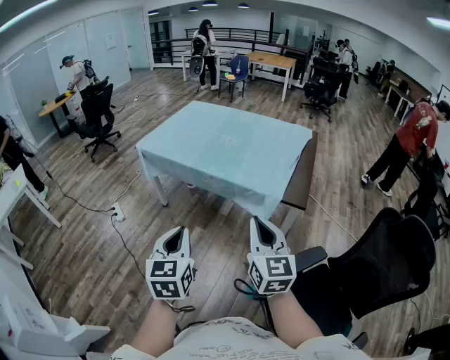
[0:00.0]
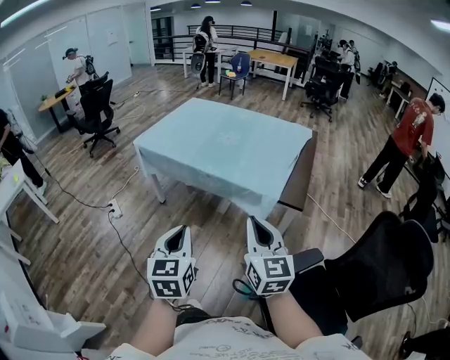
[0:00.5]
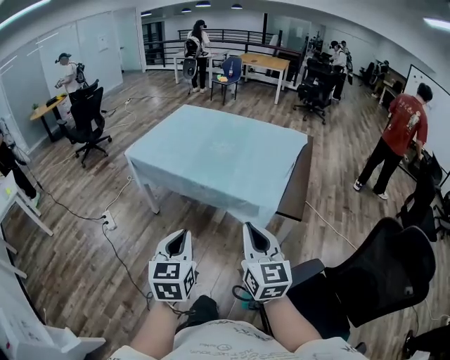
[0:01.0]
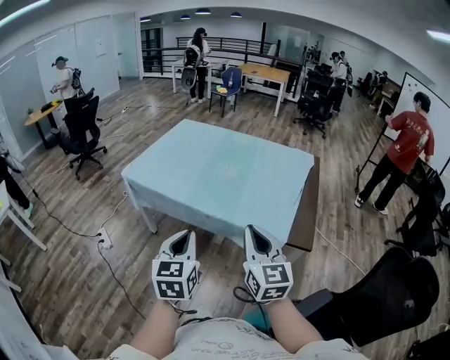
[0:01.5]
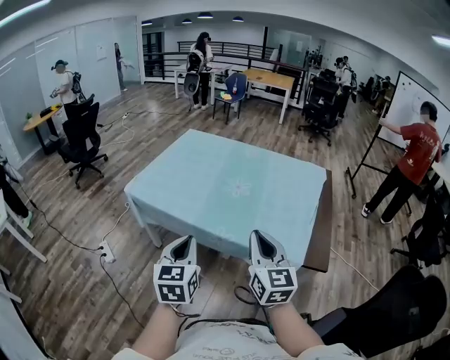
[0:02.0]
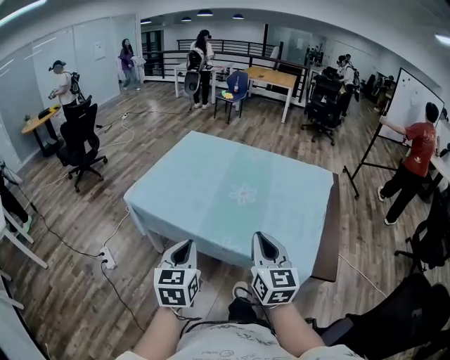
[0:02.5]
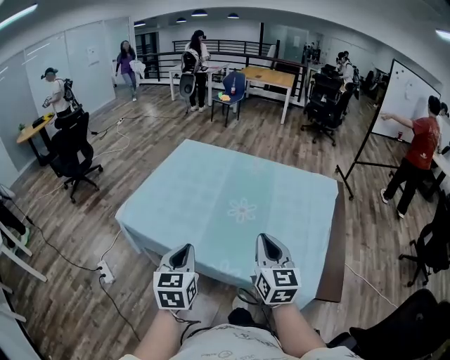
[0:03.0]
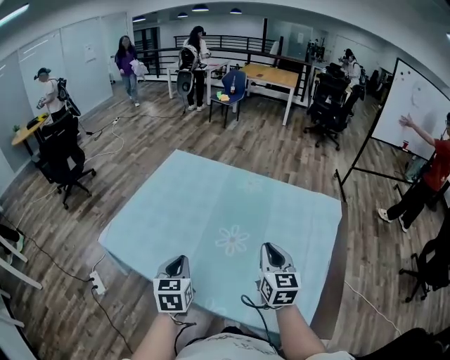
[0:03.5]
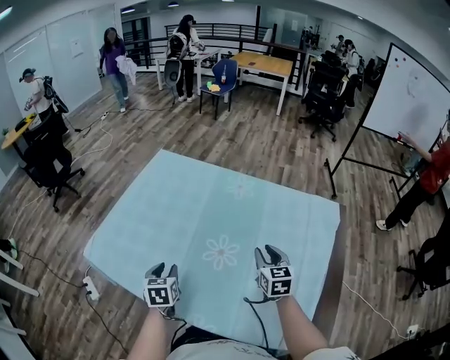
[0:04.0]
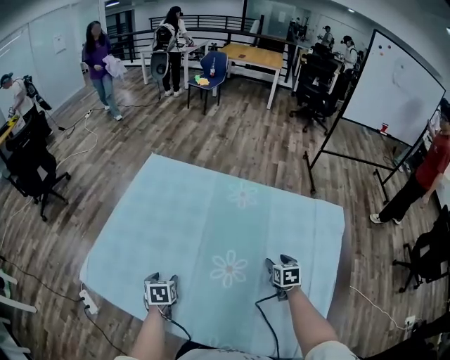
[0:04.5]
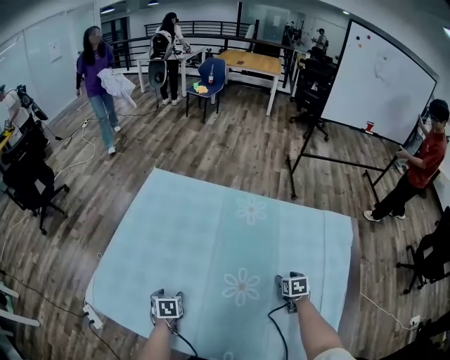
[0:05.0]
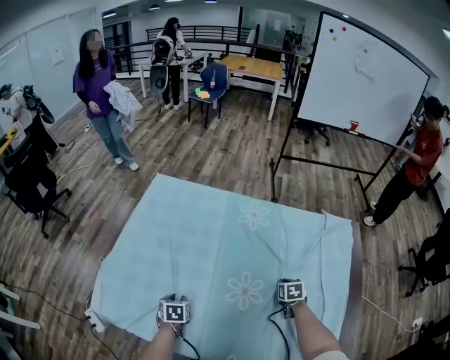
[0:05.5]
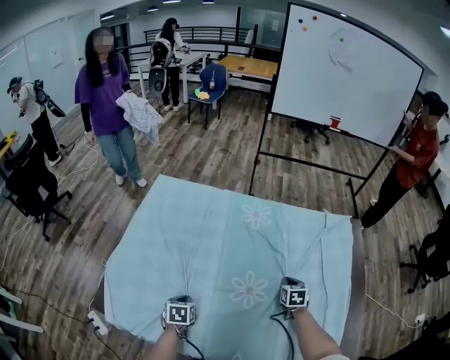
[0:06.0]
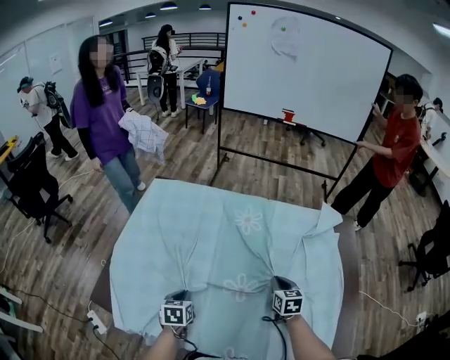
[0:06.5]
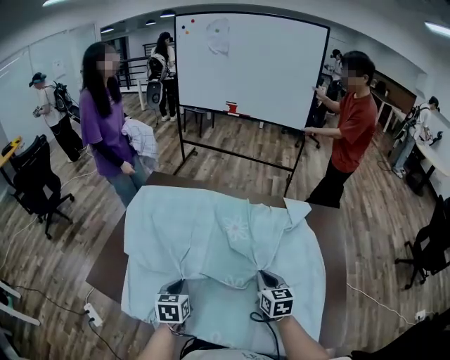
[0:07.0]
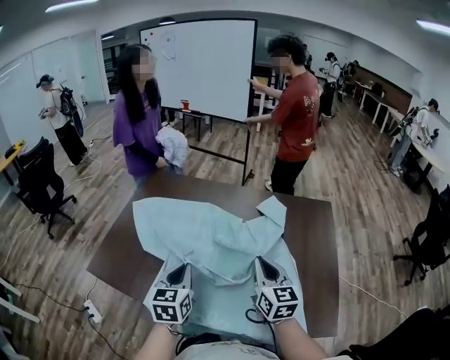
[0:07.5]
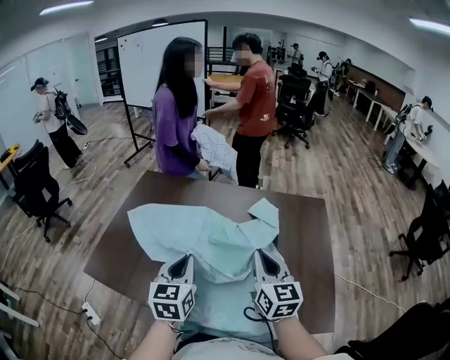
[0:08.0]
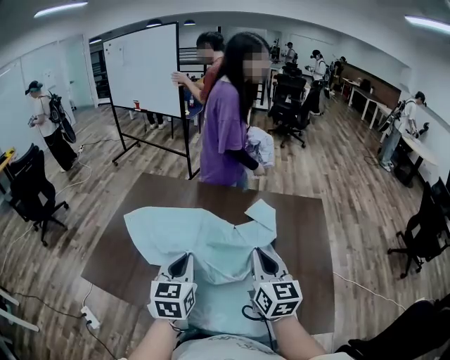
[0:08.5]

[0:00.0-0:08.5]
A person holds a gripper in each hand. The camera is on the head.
0:00.0 to 0:02.0: The grippers both shift forward by about 30 cm.
0:02.0 to 0:04.0: The two grippers travel together, forward, approximately 40 cm. Both grippers travel together downward, approximately 20 cm. The right gripper rotates about 20 degrees, and opens its fingers. Meanwhile the left gripper swivels some 30 degrees, and opens its fingers.
0:04.0 to 0:06.5: The left gripper heads forward and downward, covering some 10 cm, and closes its fingers. Meanwhile the right gripper travels downward by about 10 cm, and closes its fingers.
0:06.5 to 0:08.5: The right gripper travels upward and backward by some 30 cm, and tips its fingers upward by some 30 degrees. Meanwhile the left gripper travels upward and to the right by roughly 30 cm, and tips its fingers upward by approximately 30 degrees.

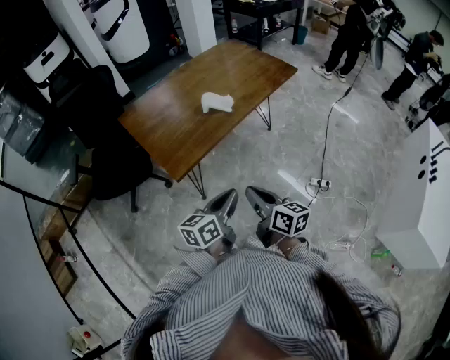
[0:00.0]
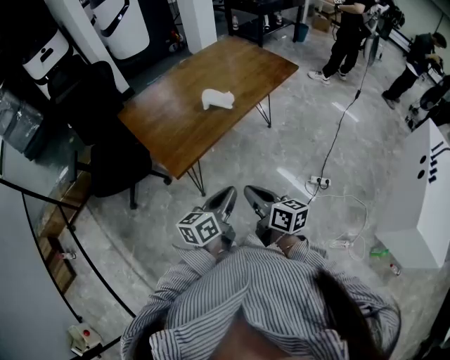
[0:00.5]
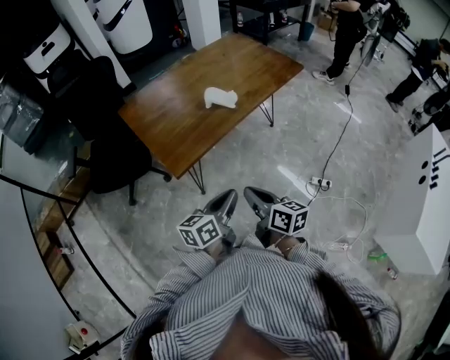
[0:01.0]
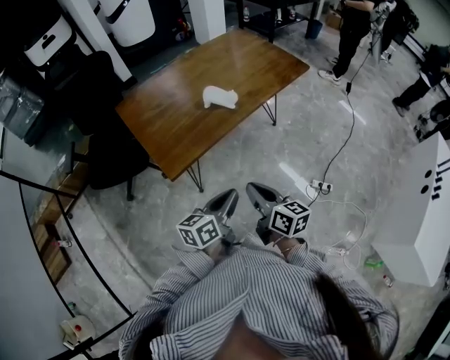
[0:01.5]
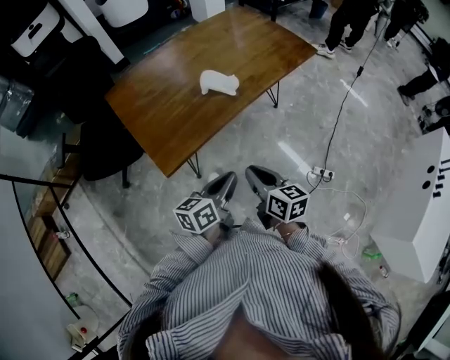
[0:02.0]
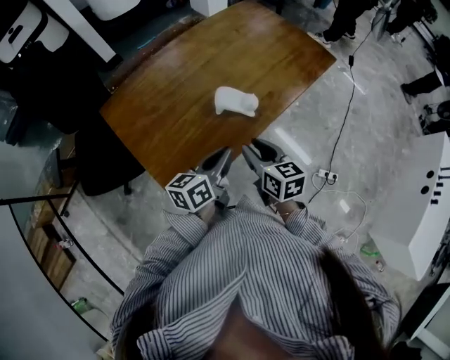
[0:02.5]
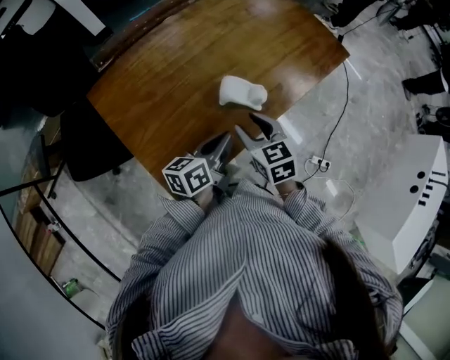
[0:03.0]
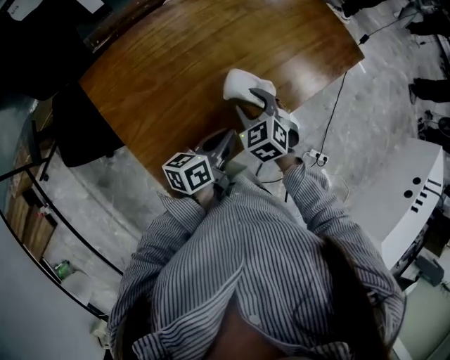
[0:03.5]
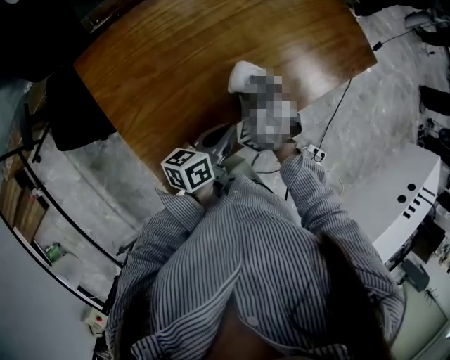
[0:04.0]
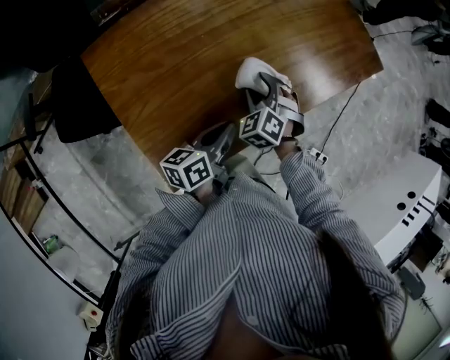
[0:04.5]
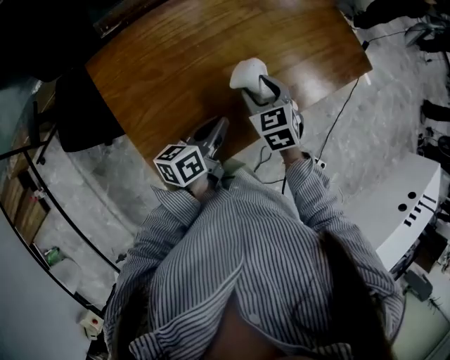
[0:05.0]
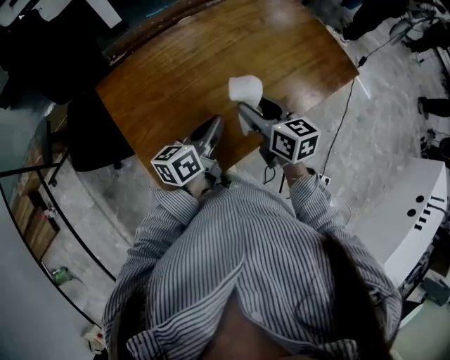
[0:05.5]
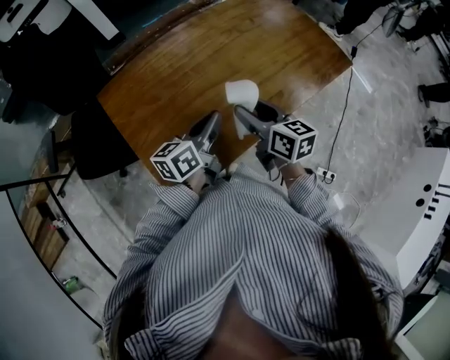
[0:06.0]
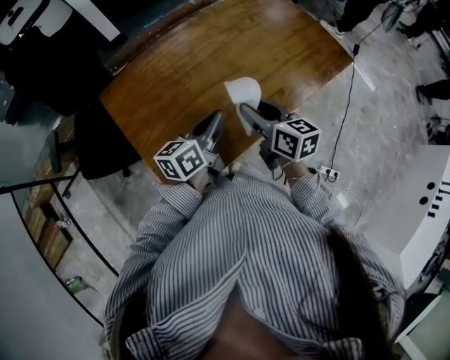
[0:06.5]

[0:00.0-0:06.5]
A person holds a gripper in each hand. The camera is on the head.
0:00.0 to 0:02.0: Both grippers move forward and downward, approximately 15 cm.
0:02.0 to 0:04.5: Both grippers travel together forward and to the left, some 35 cm. The right gripper rolls counterclockwise, seen from behind, by roughly 70 degrees, and opens its fingers.
0:04.5 to 0:06.5: The left gripper goes some 10 cm upward. Meanwhile the right gripper moves upward, about 15 cm, and rolls clockwise, seen from behind, by some 70 degrees.

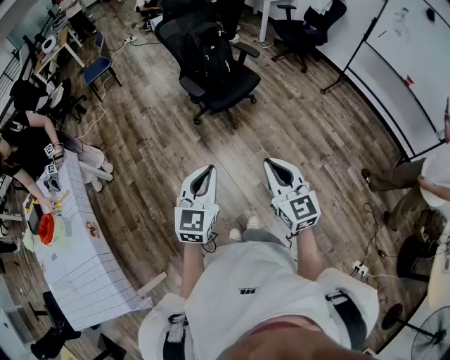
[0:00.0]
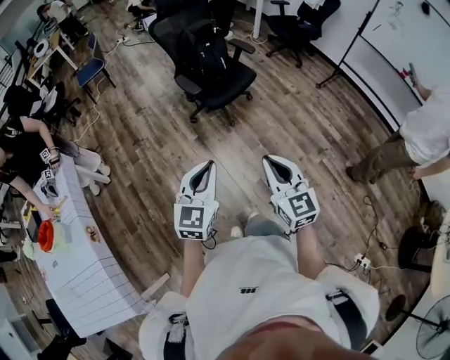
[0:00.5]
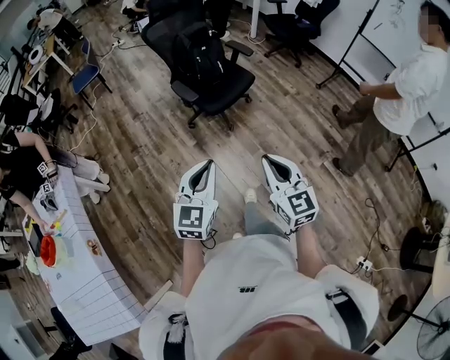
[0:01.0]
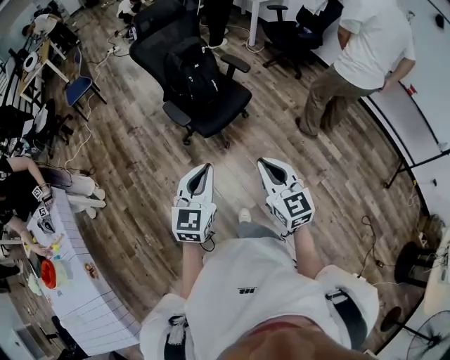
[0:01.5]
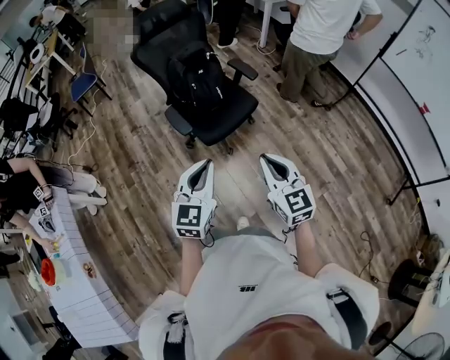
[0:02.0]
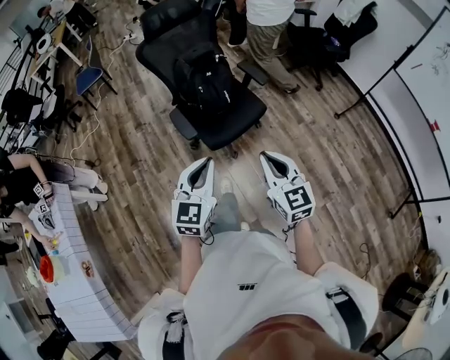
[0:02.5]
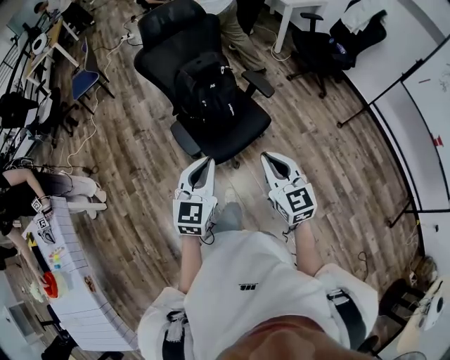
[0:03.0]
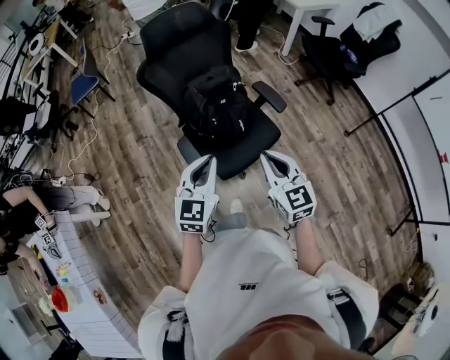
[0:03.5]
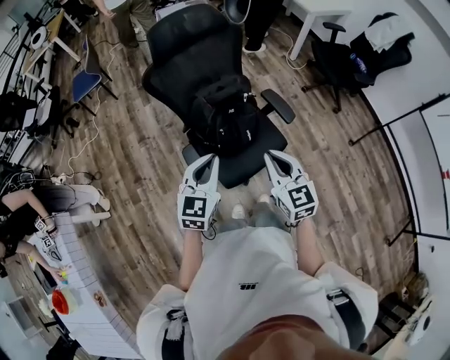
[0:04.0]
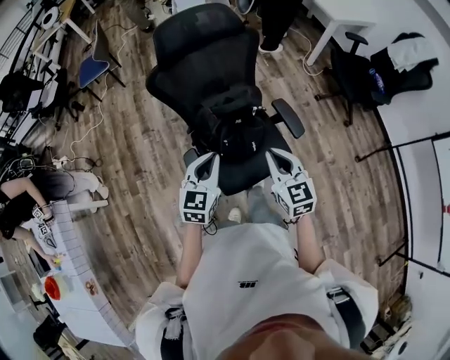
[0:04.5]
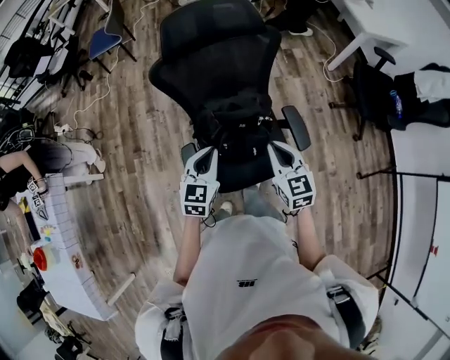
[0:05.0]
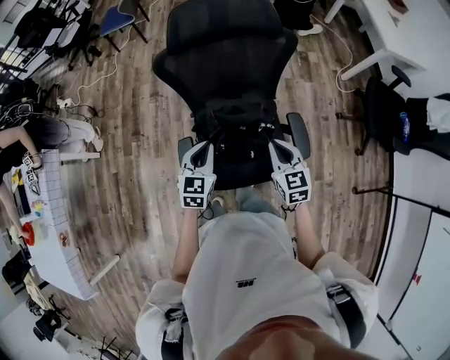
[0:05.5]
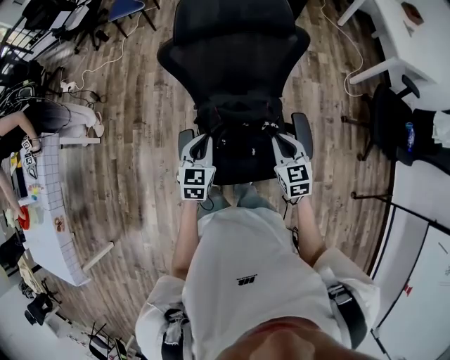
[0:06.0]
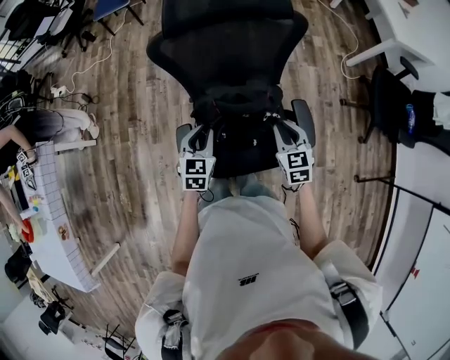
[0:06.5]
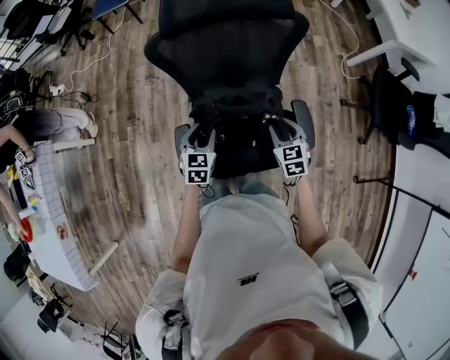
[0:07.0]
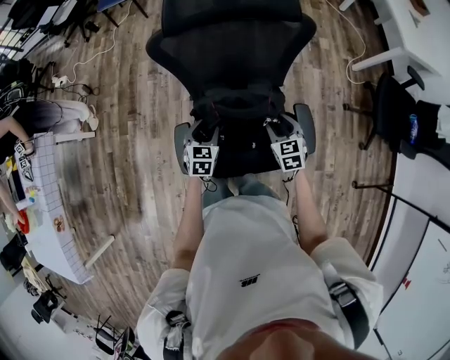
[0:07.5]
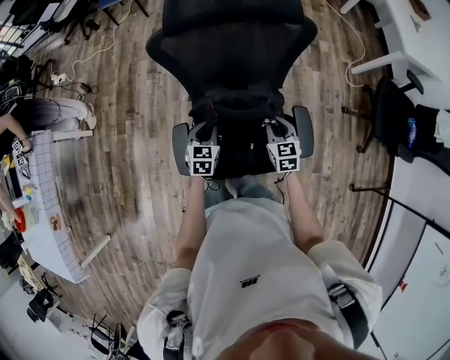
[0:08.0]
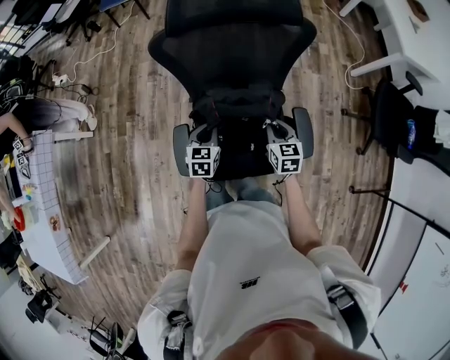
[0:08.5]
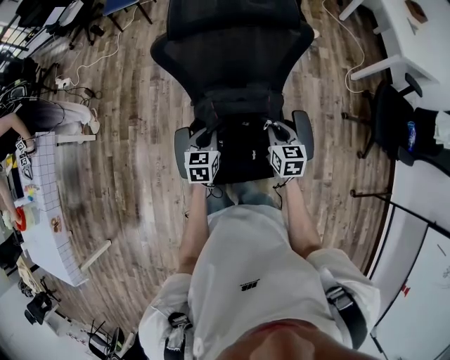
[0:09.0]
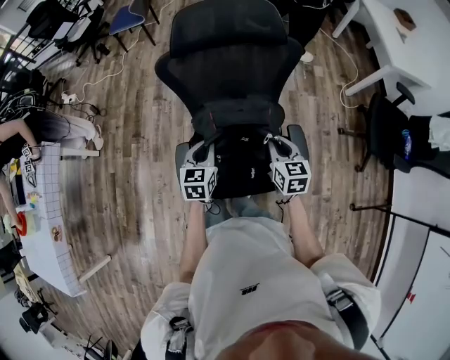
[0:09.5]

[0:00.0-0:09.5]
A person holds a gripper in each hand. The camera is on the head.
0:00.0 to 0:02.0: Both grippers move forward, approximately 35 cm.
0:02.0 to 0:04.0: The two grippers travel together, forward, roughly 40 cm.
0:04.0 to 0:05.5: Both grippers move forward and downward, about 25 cm. The left gripper turns by some 30 degrees; the right gripper turns by approximately 20 degrees.
0:05.5 to 0:07.5: The left gripper moves downward, some 15 cm, and opens its fingers; the right gripper moves downward and forward, about 15 cm, and opens its fingers.
0:07.5 to 0:09.5: Both grippers move upward, about 10 cm. The right gripper closes up. The left gripper closes.

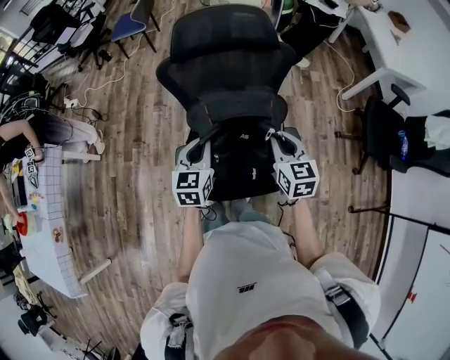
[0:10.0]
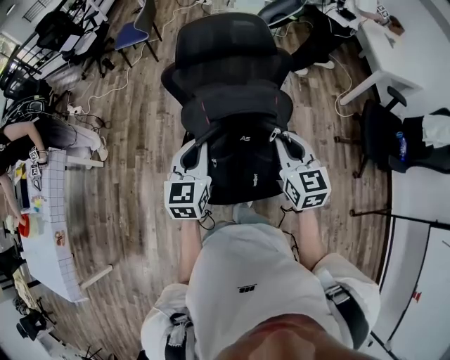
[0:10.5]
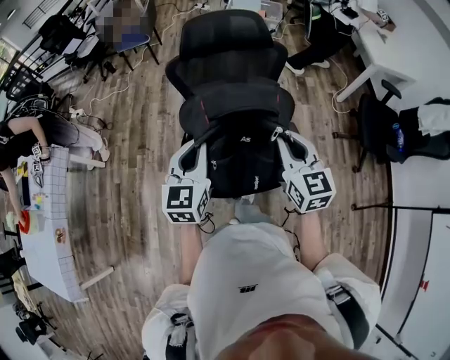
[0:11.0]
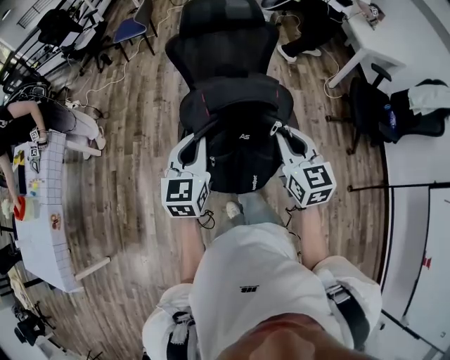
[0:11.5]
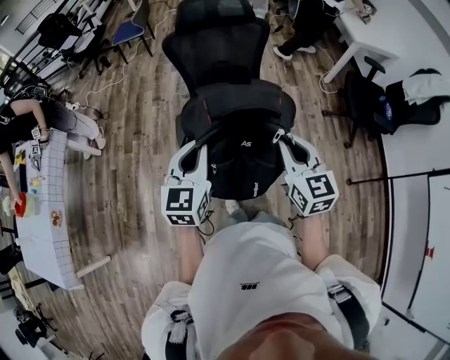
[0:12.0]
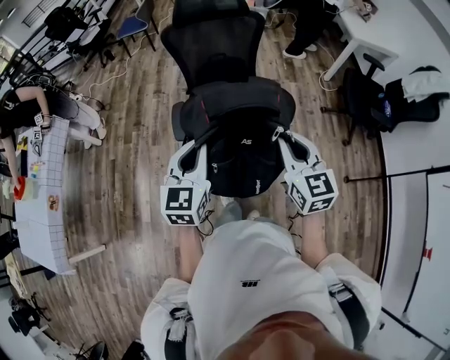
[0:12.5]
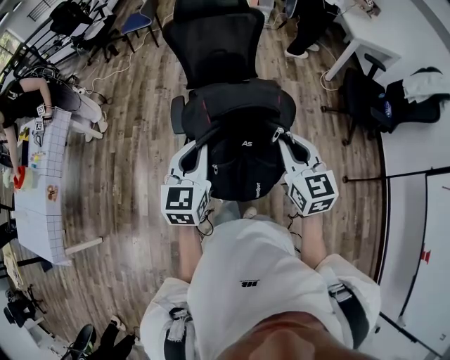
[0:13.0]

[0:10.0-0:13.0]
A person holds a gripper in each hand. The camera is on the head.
0:10.0 to 0:11.5: The grippers both shift backward and upward by roughly 25 cm.
0:11.5 to 0:13.0: Both grippers move backward and to the right, some 20 cm.
